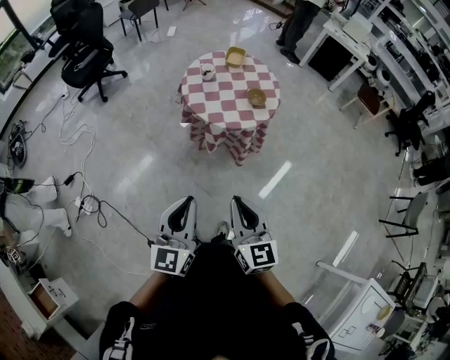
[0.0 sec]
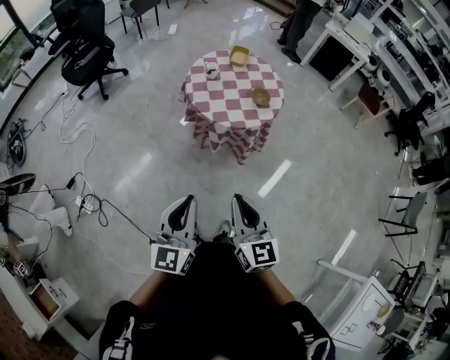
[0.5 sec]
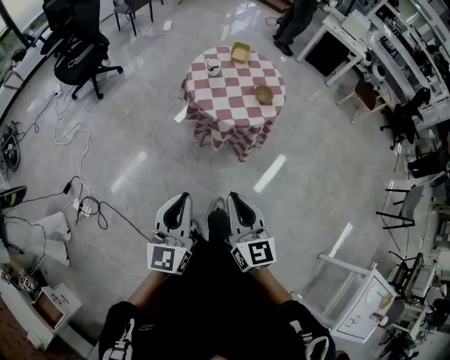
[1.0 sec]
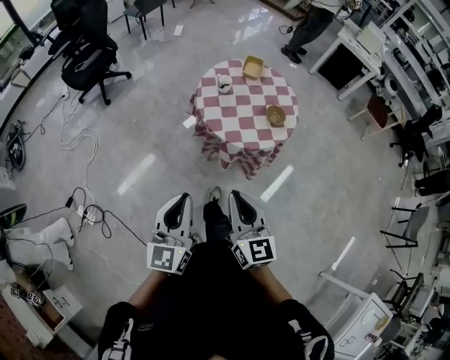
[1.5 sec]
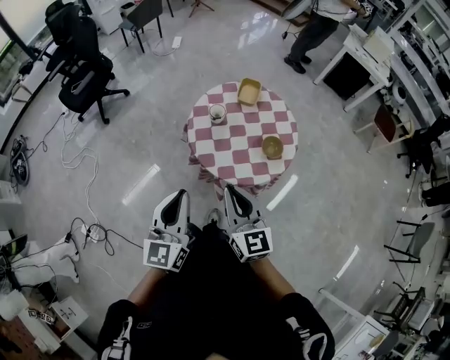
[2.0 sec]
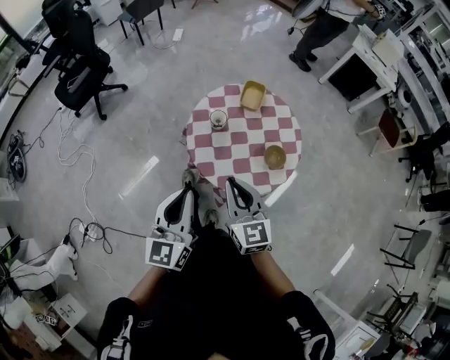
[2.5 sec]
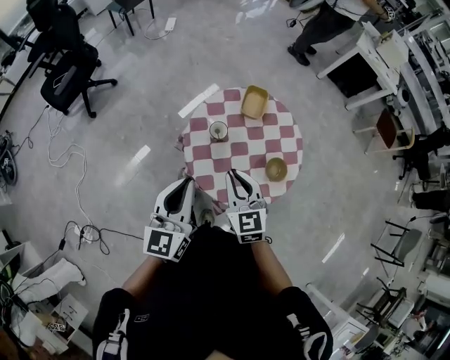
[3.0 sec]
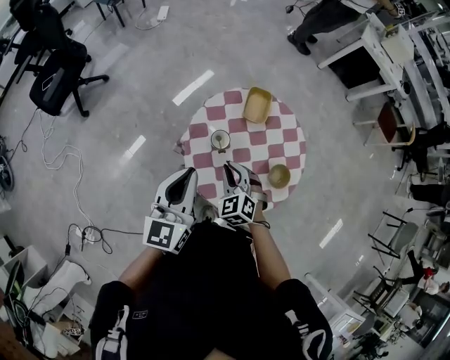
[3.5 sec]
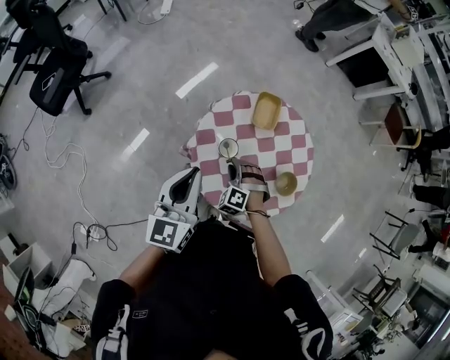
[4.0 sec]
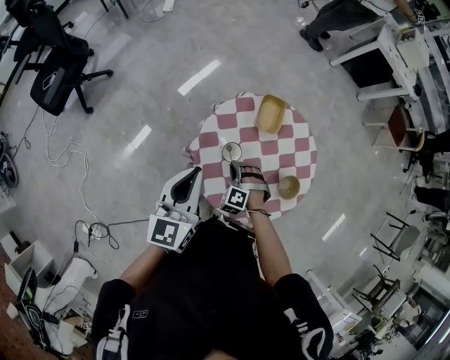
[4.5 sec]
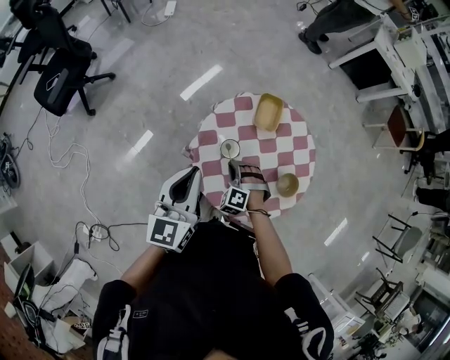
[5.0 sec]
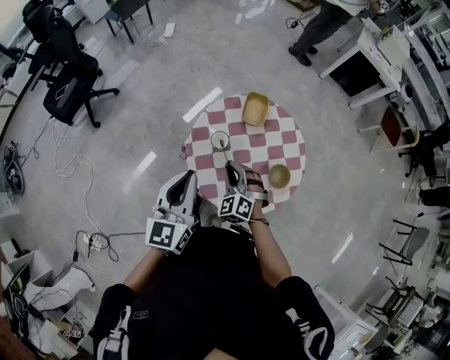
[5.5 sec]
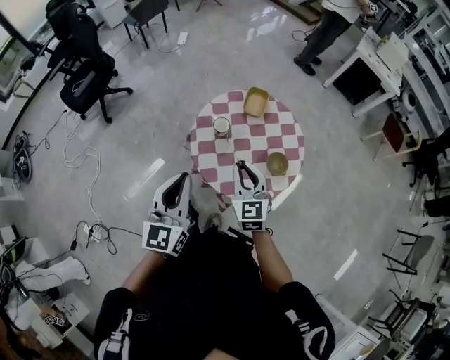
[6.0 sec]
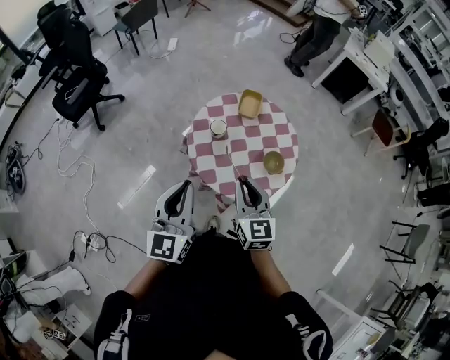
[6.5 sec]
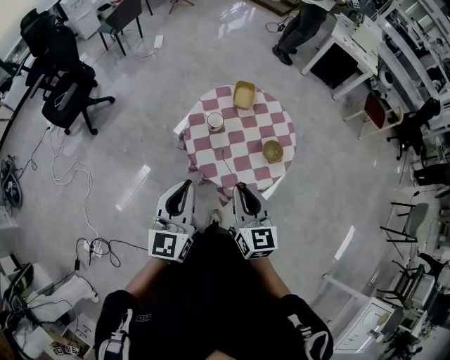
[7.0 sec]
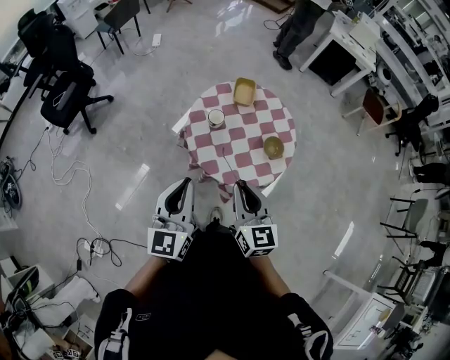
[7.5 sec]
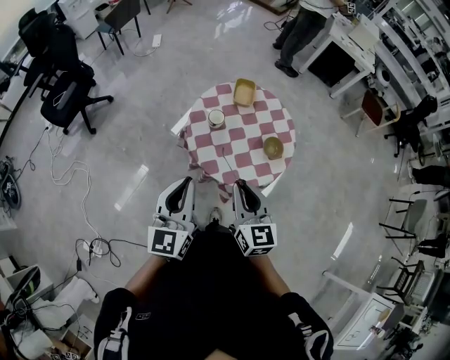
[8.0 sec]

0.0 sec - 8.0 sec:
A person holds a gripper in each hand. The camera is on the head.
0.0 sec - 2.0 sec: The two grippers go some 35 cm forward.
2.0 sec - 4.0 sec: The right gripper shifts some 50 cm forward and downward, angles its fingers downward, by approximately 50 degrees, and opens up. The left gripper shifts about 35 cm forward.
4.0 sec - 6.0 sec: The left gripper shifts some 20 cm backward, while the right gripper goes some 30 cm upward and backward, and points its fingers roughly 40 degrees further upward.
6.0 sec - 8.0 sec: The right gripper is displaced backward and upward by roughly 15 cm; the left gripper ends up roughly 5 cm from where it was.

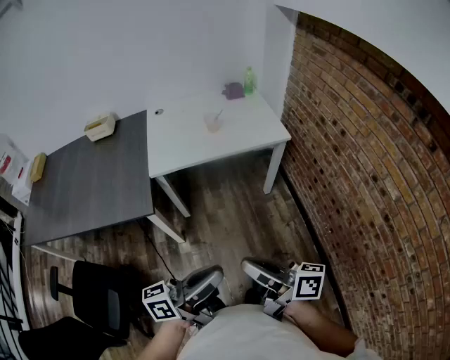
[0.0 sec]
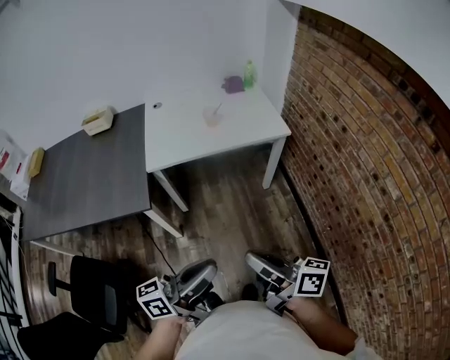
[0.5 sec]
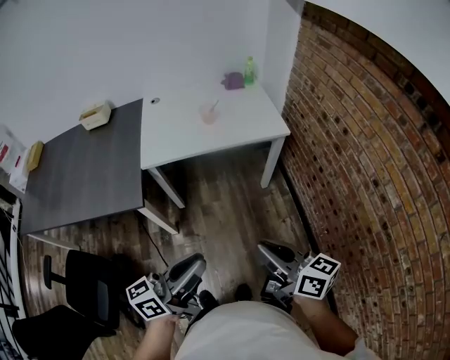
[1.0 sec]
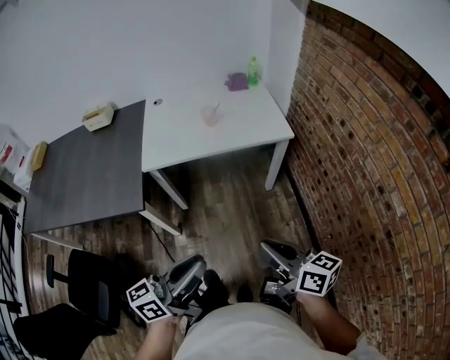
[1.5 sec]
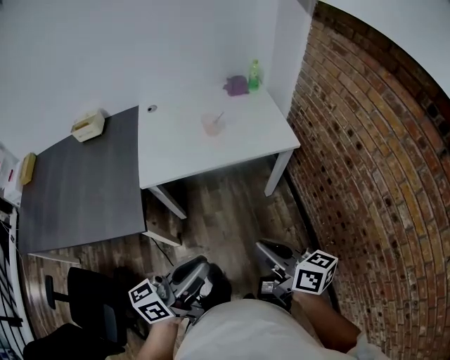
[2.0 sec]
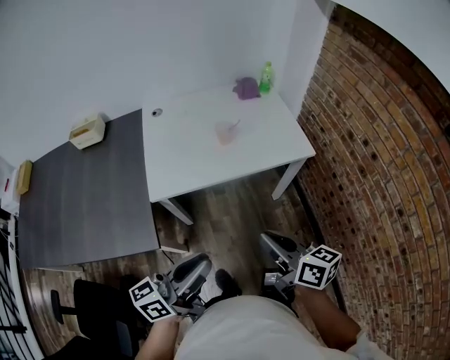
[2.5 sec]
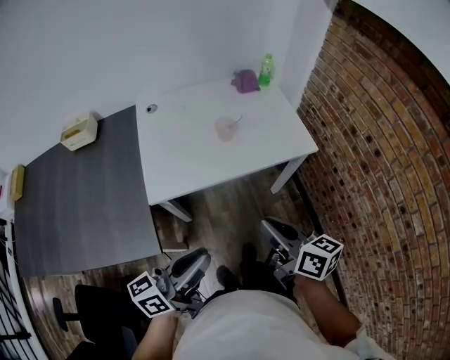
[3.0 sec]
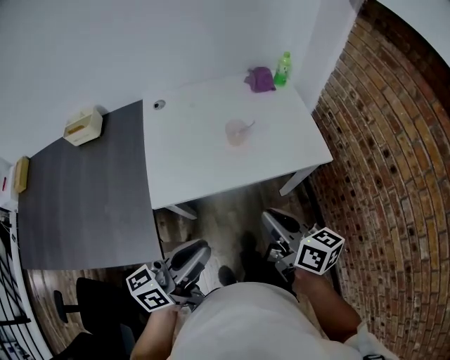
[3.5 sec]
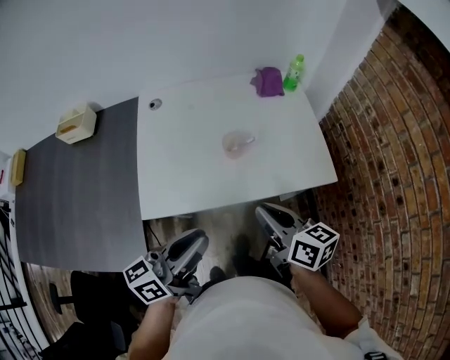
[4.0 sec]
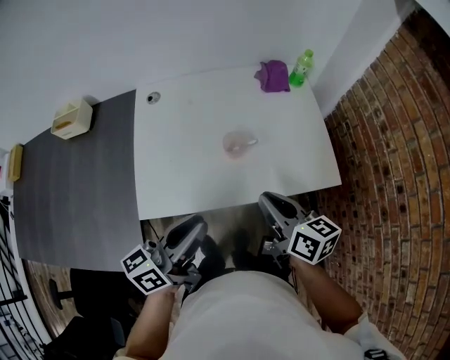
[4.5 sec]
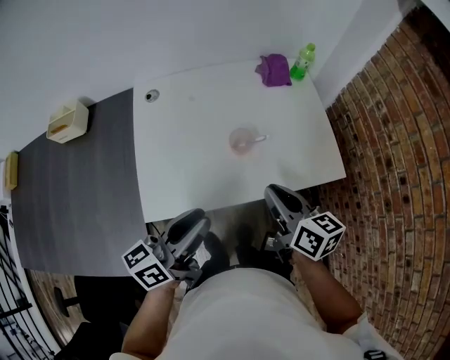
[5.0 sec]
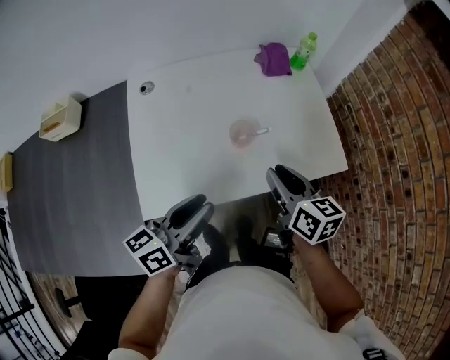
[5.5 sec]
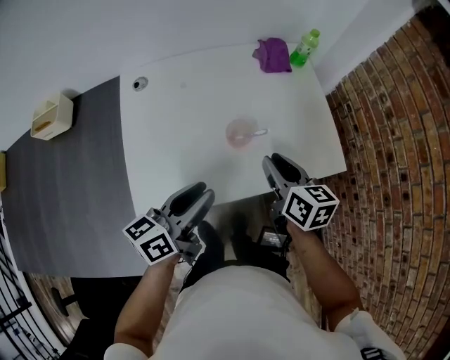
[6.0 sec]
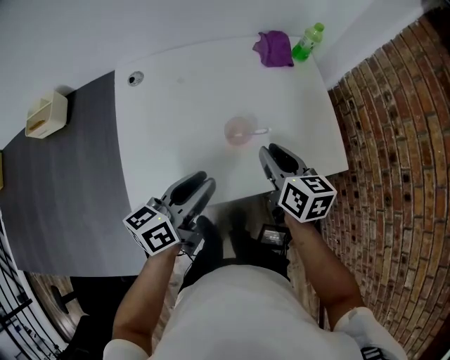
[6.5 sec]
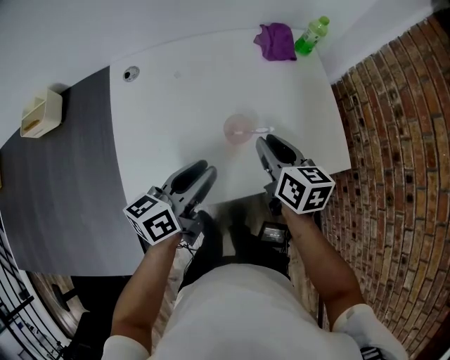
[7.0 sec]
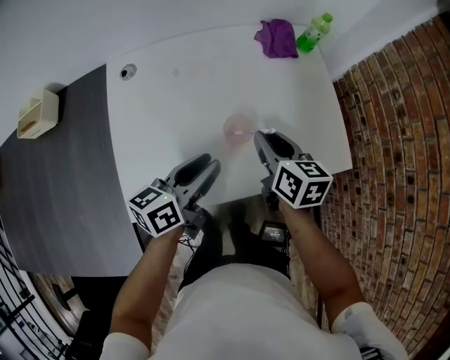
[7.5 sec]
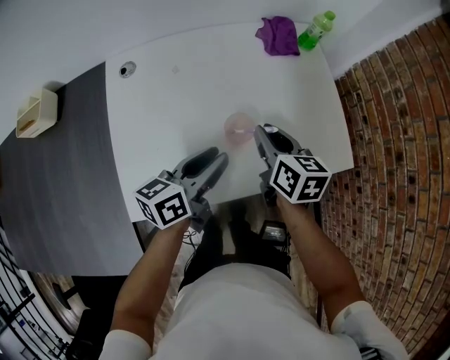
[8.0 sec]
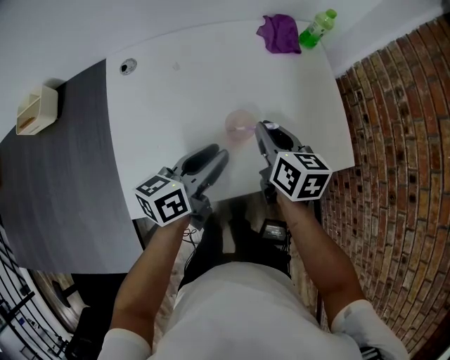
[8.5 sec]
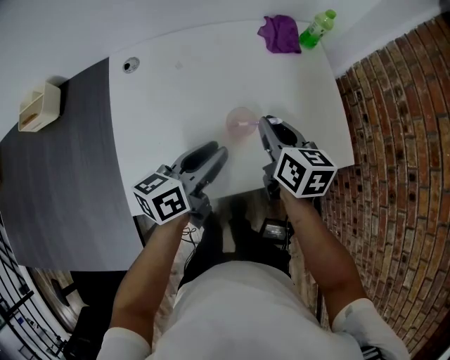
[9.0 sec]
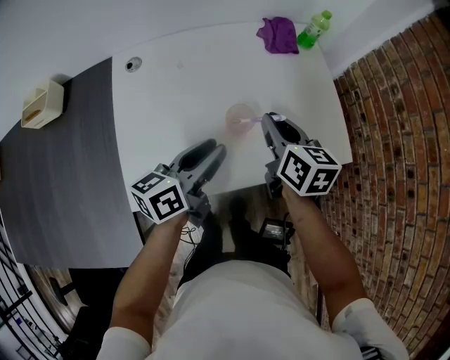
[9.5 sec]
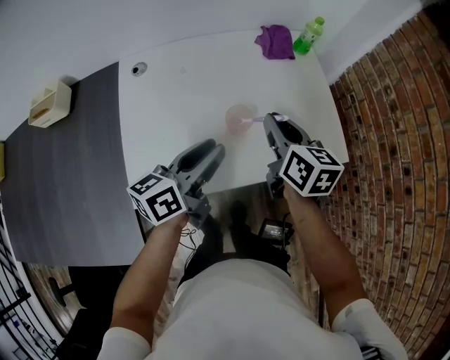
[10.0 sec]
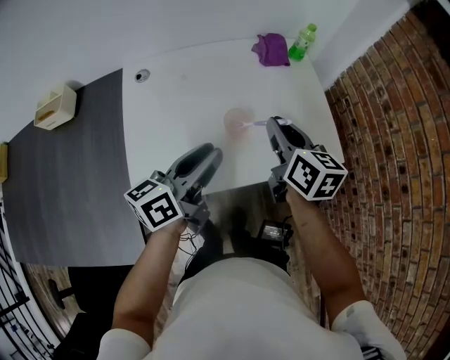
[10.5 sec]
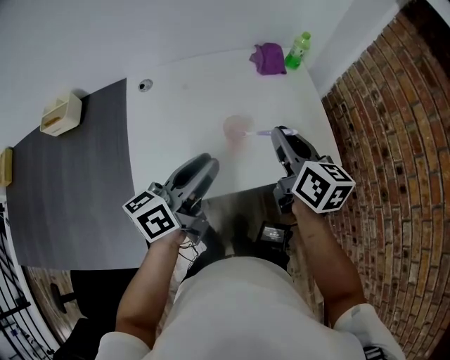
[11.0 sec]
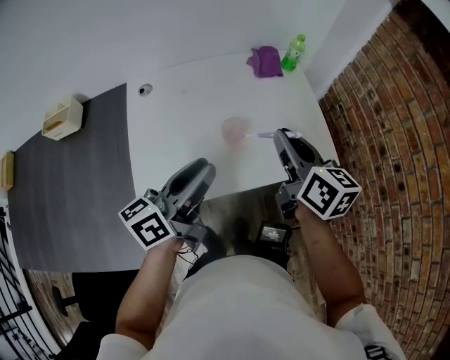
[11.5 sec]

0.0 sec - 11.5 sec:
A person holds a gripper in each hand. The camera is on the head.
0.0 sec - 2.0 sec: The two grippers go some 15 cm forward. The right gripper changes its angle by approximately 30 degrees.
2.0 sec - 4.0 sec: Both grippers travel together forward, about 30 cm.
4.0 sec - 6.0 sec: The left gripper is displaced forward and downward by about 15 cm; the right gripper shifts some 15 cm forward.
6.0 sec - 7.5 sec: The two grippers go roughly 5 cm forward.
7.5 sec - 9.5 sec: The grippers stay close to where they were, moving slightly.
9.5 sec - 11.5 sec: Both grippers travel together upward and backward, approximately 15 cm.

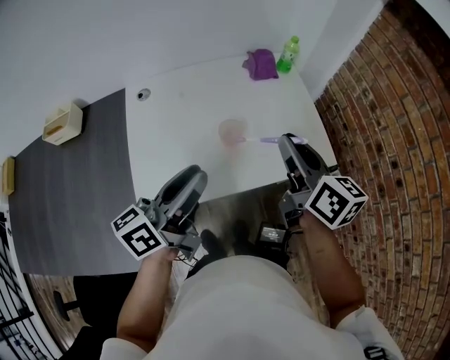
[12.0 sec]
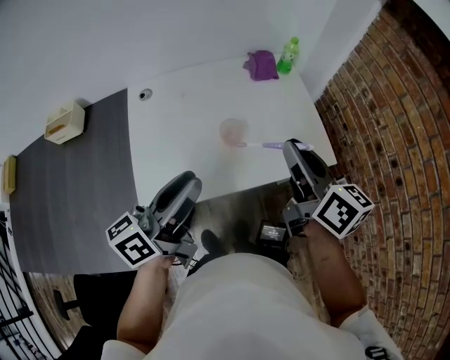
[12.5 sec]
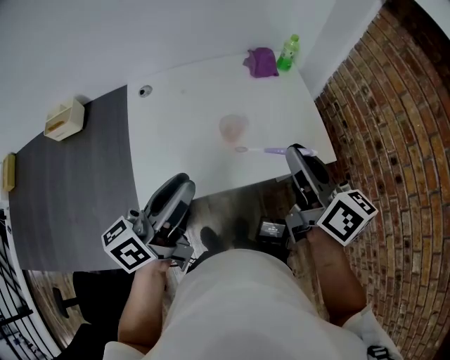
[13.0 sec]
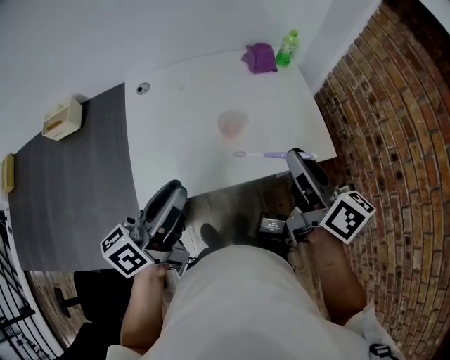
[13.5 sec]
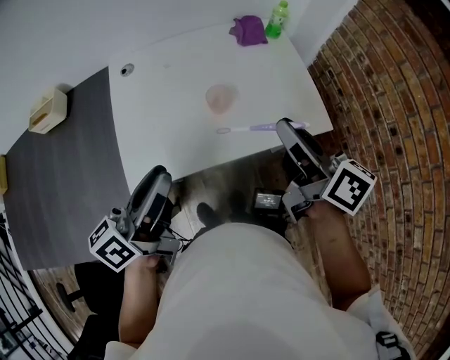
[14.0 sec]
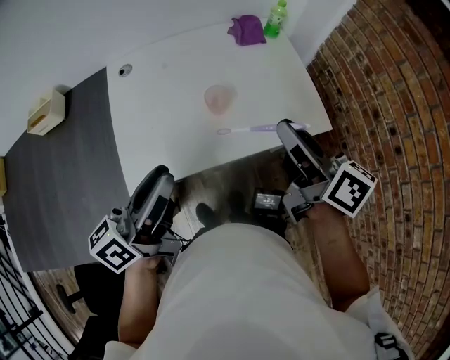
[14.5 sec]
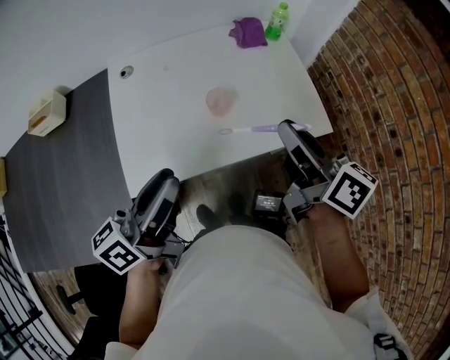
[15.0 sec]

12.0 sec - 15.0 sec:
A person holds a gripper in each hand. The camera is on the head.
12.0 sec - 13.5 sec: The right gripper shifts some 5 cm backward. The left gripper changes place by some 5 cm.
13.5 sec - 15.0 sec: The grippers move only a little.

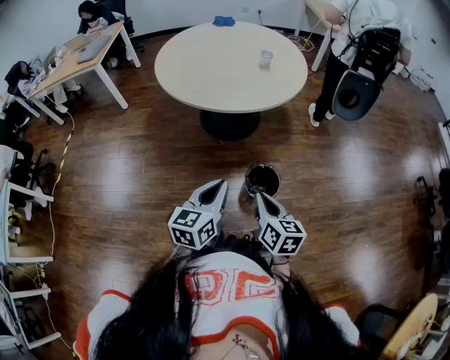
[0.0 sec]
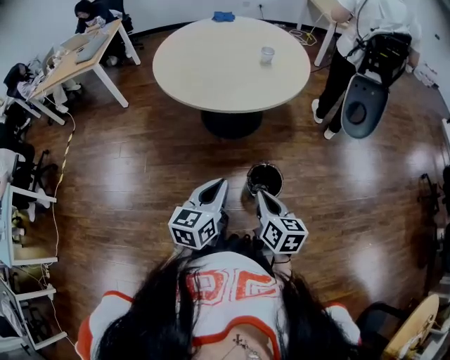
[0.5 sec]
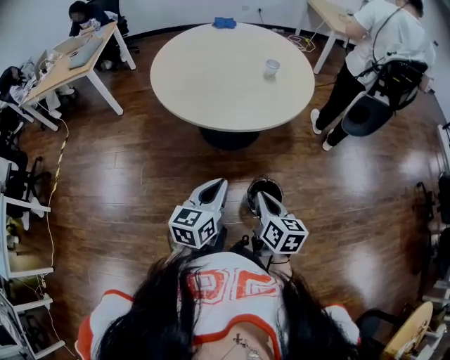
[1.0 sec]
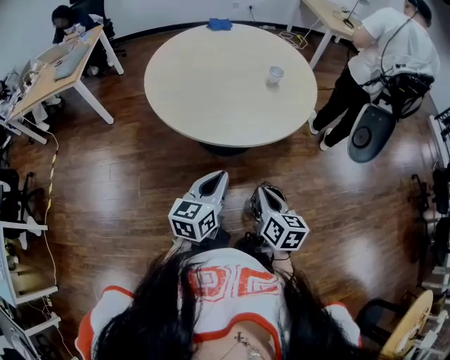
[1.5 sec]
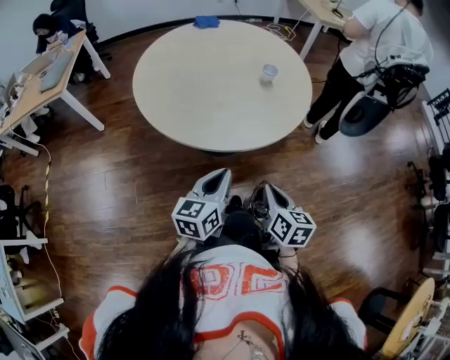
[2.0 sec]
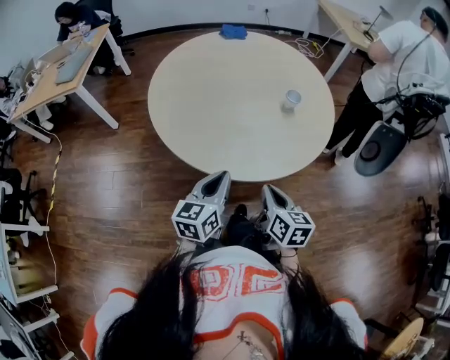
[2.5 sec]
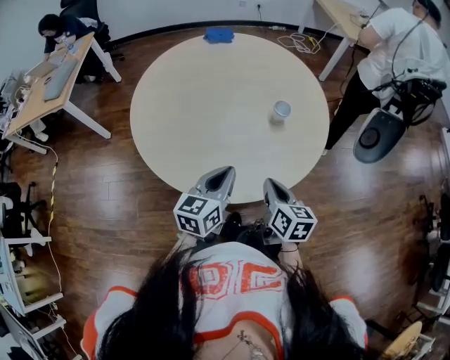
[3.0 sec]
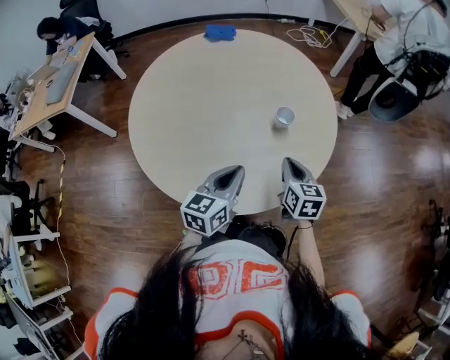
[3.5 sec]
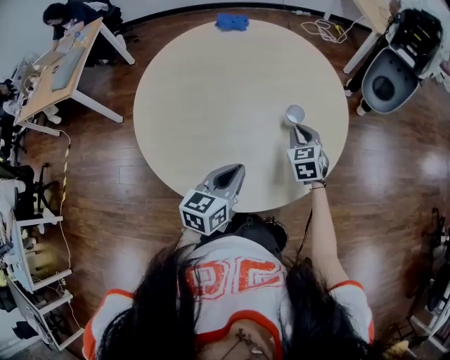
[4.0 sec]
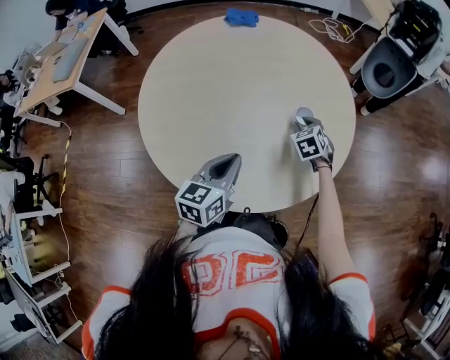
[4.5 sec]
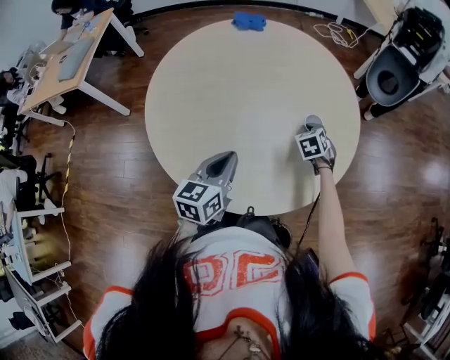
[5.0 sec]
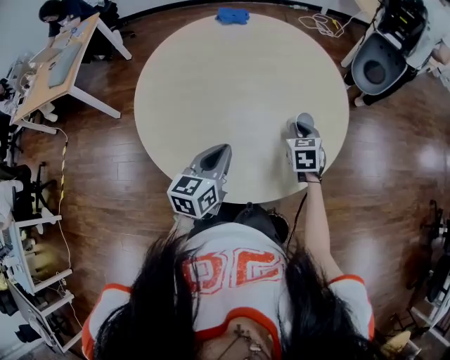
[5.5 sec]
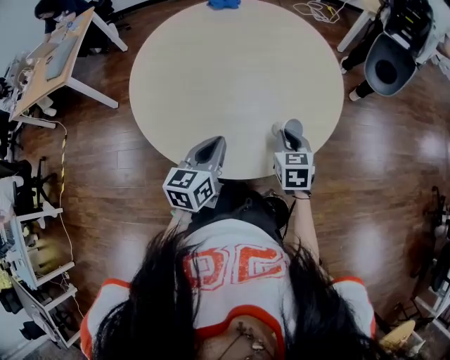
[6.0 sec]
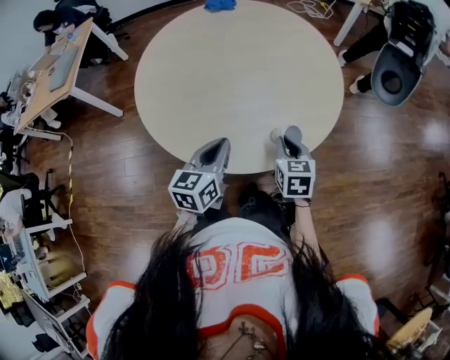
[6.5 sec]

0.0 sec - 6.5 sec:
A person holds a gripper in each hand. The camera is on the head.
0.0 sec - 2.0 sec: The grippers both shift forward by some 20 cm.
2.0 sec - 4.5 sec: The left gripper is displaced forward by approximately 25 cm; the right gripper heads forward, covering roughly 50 cm, twists approximately 50 degrees counterclockwise, seen from behind, and opens.
4.5 sec - 6.5 sec: The right gripper travels backward by approximately 20 cm, and rotates approximately 30 degrees; the left gripper moves backward, approximately 5 cm.
